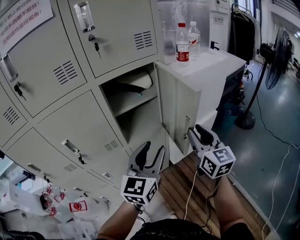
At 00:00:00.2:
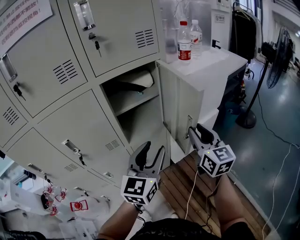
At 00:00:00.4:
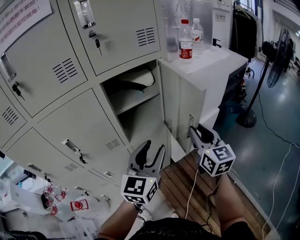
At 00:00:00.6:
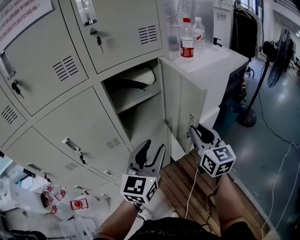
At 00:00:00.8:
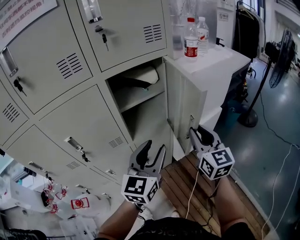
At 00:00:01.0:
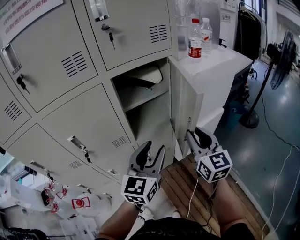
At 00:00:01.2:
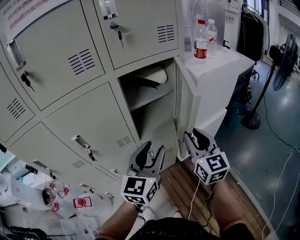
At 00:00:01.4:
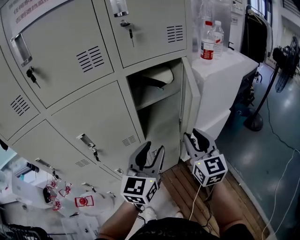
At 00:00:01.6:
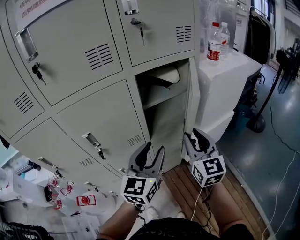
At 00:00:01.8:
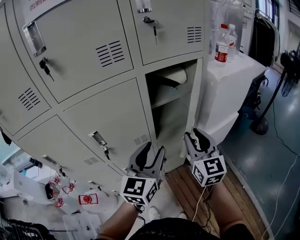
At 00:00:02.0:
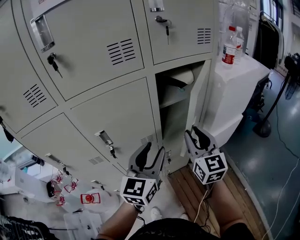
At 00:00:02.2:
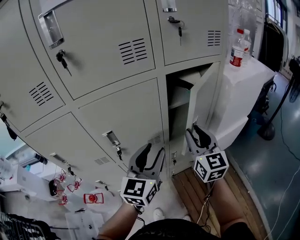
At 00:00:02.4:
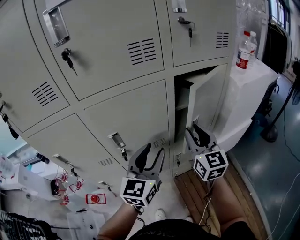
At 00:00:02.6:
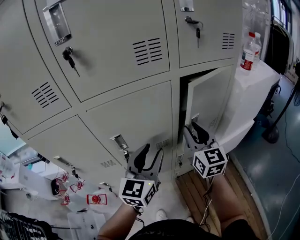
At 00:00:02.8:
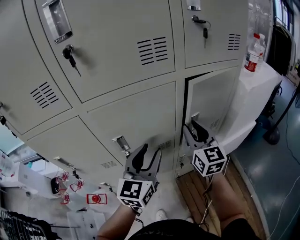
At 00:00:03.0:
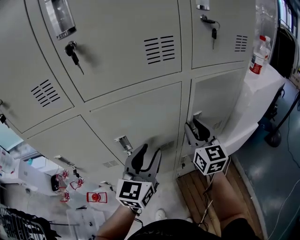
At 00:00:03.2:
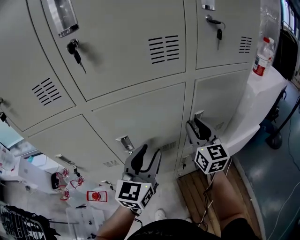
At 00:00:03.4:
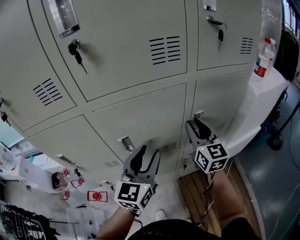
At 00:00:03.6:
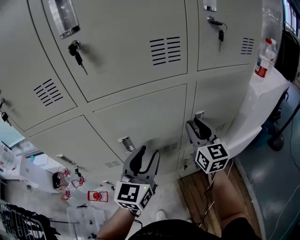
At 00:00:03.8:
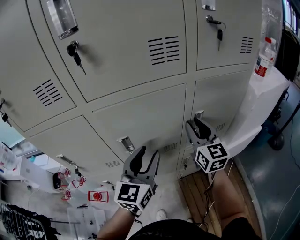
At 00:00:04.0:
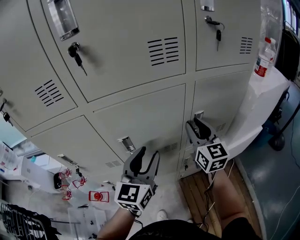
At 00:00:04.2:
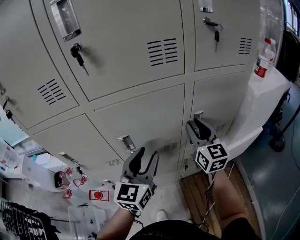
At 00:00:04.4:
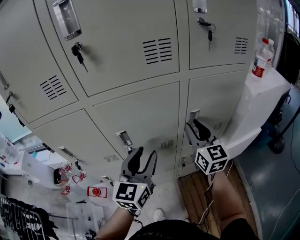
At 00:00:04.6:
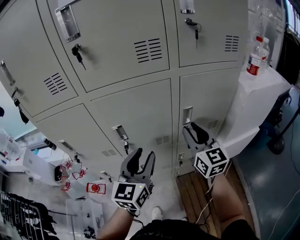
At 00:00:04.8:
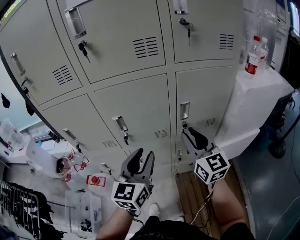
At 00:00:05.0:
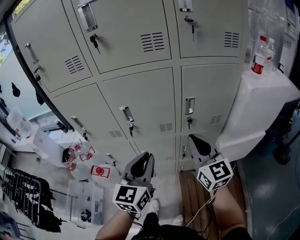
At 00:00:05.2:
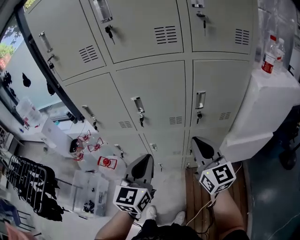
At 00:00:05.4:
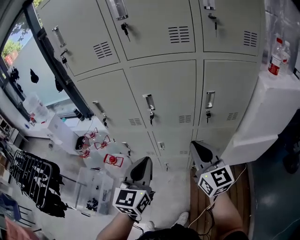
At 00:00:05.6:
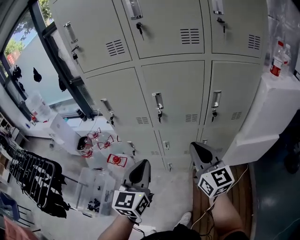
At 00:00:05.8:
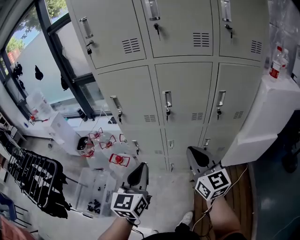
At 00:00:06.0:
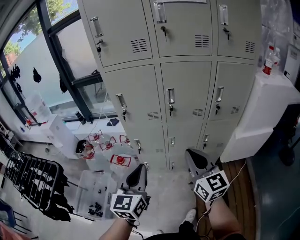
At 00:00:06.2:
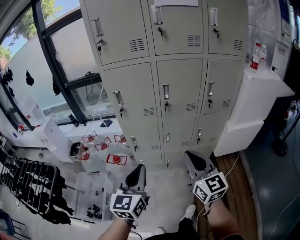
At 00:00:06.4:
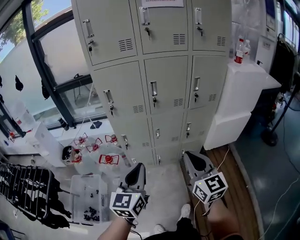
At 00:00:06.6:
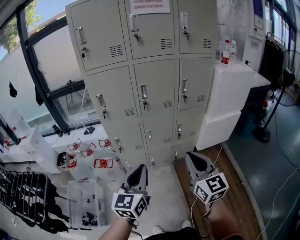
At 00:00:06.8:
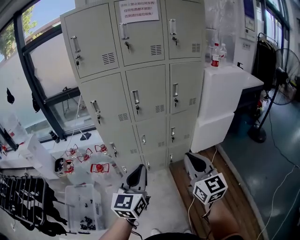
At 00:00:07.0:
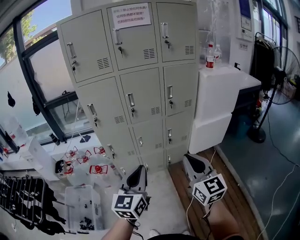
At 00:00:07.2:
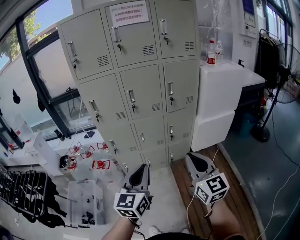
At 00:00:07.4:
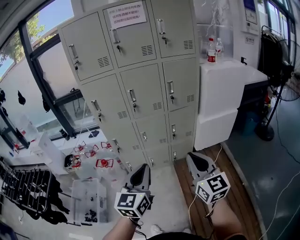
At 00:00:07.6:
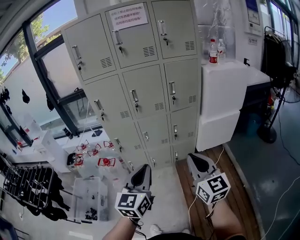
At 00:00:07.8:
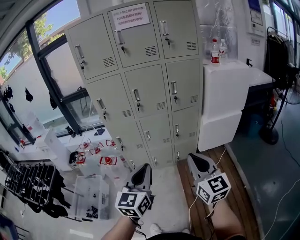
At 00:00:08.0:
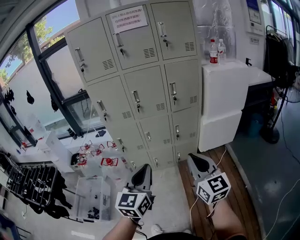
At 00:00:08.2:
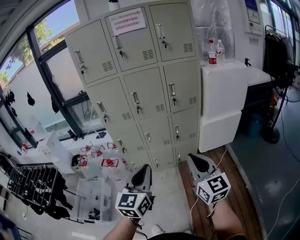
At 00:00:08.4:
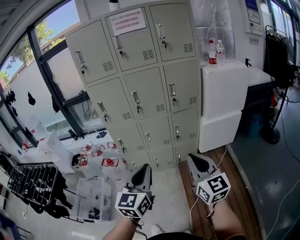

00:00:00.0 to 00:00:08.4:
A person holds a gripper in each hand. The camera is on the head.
00:00:00.0 to 00:00:01.4: Both grippers travel together to the left, roughly 10 cm.
00:00:01.4 to 00:00:02.8: The left gripper heads to the left, covering some 20 cm. Meanwhile the right gripper moves to the left and forward, about 20 cm.
00:00:02.8 to 00:00:04.2: The grippers make only small movements.
00:00:04.2 to 00:00:05.6: The right gripper goes some 25 cm backward and to the left, turns by approximately 20 degrees, and closes up. Meanwhile the left gripper is displaced backward by some 25 cm, swivels about 20 degrees, and closes.
00:00:05.6 to 00:00:07.0: Both grippers travel together backward, roughly 25 cm. The right gripper turns by approximately 20 degrees.
00:00:07.0 to 00:00:08.4: Both grippers travel together to the right and backward, some 10 cm.

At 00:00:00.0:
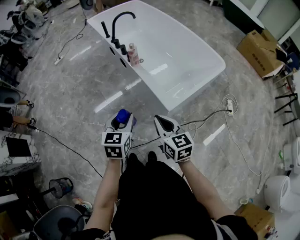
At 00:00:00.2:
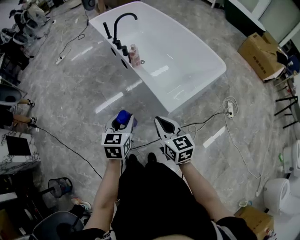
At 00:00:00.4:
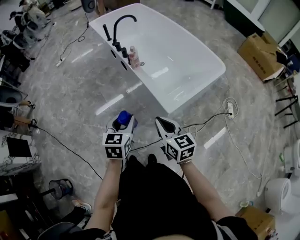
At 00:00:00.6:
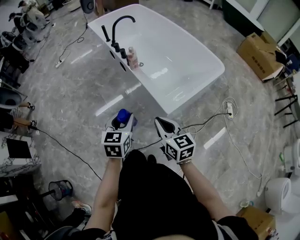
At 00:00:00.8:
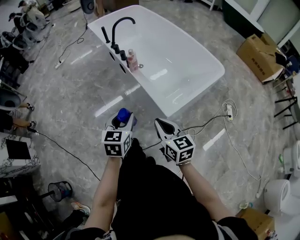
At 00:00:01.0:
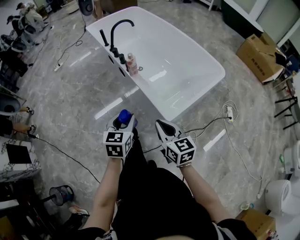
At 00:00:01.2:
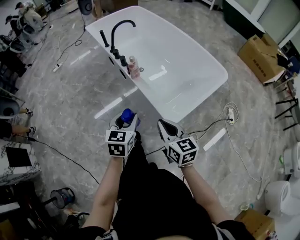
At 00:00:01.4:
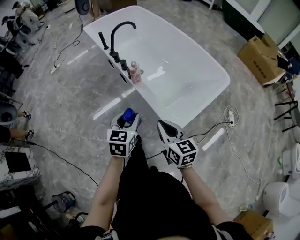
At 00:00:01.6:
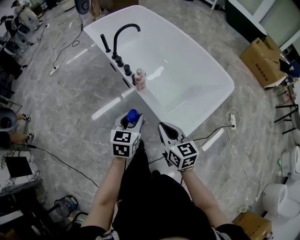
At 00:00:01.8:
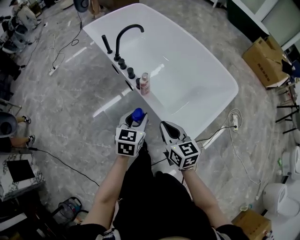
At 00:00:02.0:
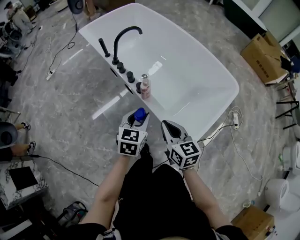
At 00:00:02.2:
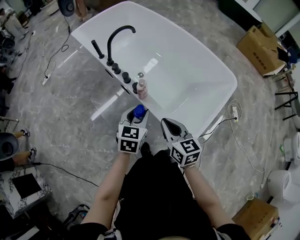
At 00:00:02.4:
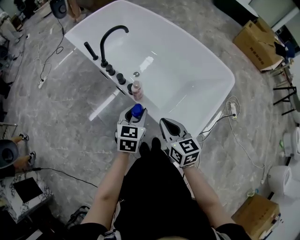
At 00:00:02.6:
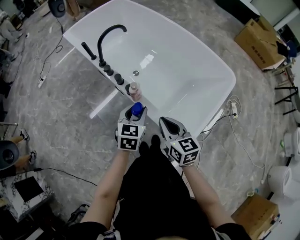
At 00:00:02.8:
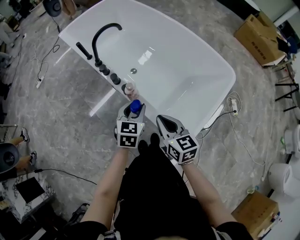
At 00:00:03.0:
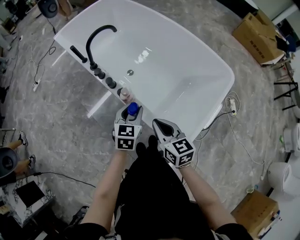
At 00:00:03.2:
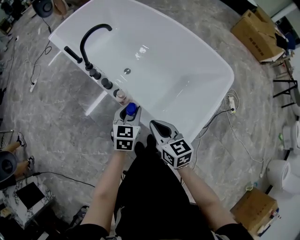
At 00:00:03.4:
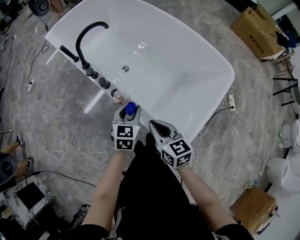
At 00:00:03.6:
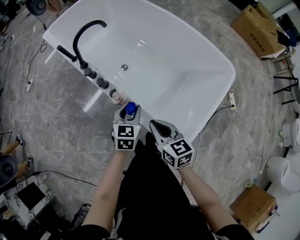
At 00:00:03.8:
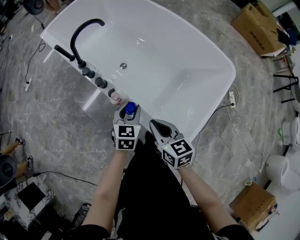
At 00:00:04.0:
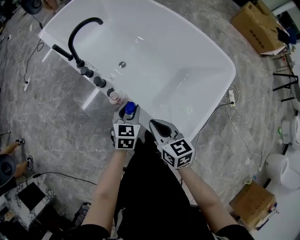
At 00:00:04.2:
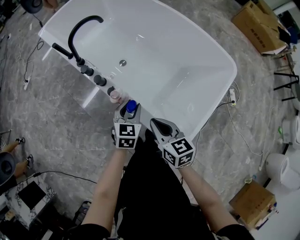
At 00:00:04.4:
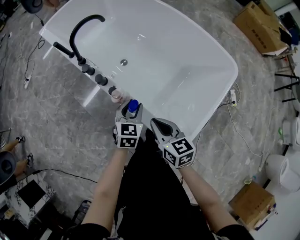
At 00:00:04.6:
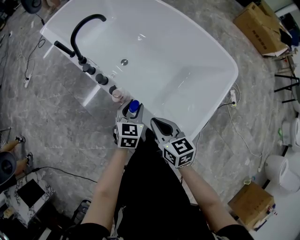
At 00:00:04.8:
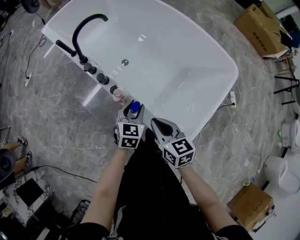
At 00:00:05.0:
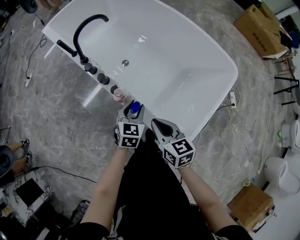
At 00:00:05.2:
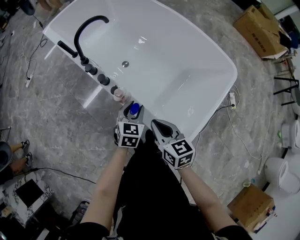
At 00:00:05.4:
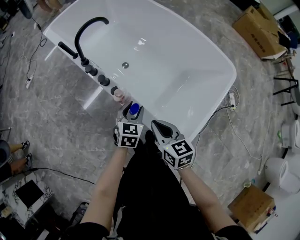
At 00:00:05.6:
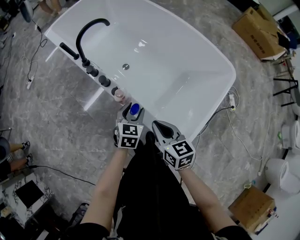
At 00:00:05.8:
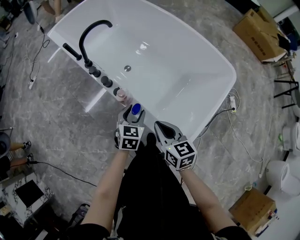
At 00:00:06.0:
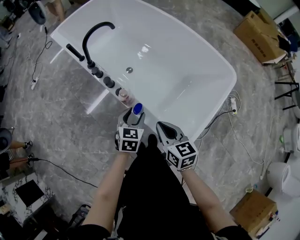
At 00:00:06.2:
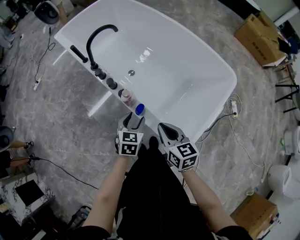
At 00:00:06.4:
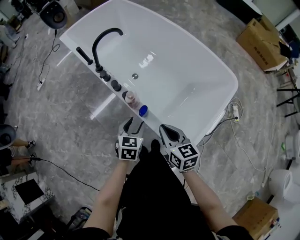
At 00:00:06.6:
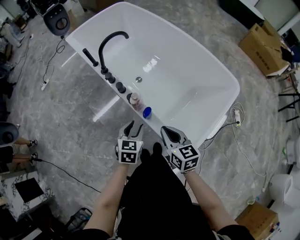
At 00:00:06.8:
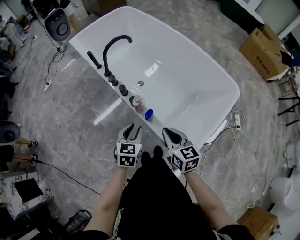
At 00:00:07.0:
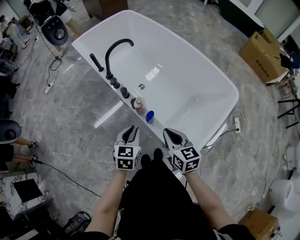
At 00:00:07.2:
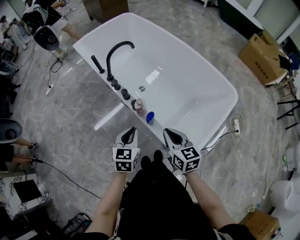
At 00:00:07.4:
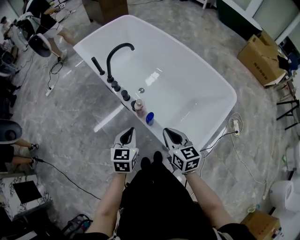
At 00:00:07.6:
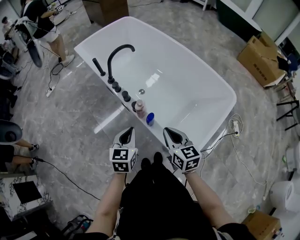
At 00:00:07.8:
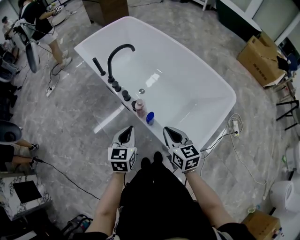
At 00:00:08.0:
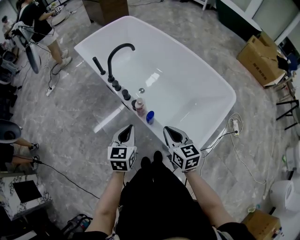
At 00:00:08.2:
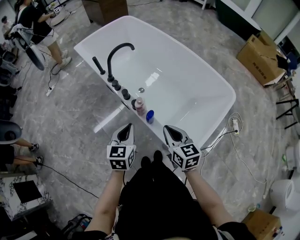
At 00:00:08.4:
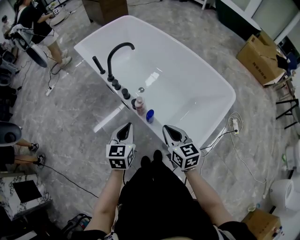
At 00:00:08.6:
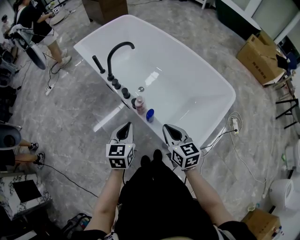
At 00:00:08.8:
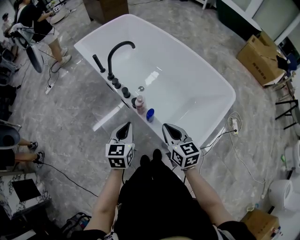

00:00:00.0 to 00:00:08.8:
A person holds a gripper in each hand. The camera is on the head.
00:00:00.0 to 00:00:01.4: The grippers both shift forward by roughly 15 cm.
00:00:01.4 to 00:00:03.0: The grippers both shift forward by about 20 cm.
00:00:03.0 to 00:00:04.4: The left gripper shifts some 5 cm downward, while the right gripper ends up approximately 5 cm from where it was.
00:00:04.4 to 00:00:05.8: There are only small adjustments of the grippers.
00:00:05.8 to 00:00:07.4: The right gripper moves upward, roughly 5 cm, while the left gripper travels upward, to the left and backward by some 15 cm, and closes up.
00:00:07.4 to 00:00:08.8: The grippers move only a little.
